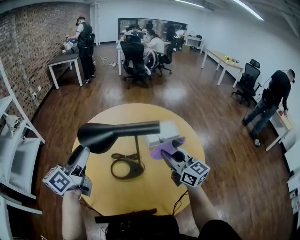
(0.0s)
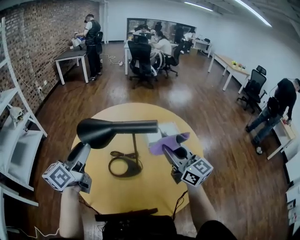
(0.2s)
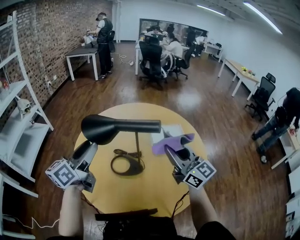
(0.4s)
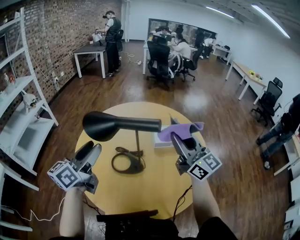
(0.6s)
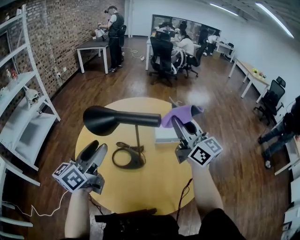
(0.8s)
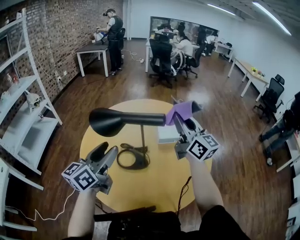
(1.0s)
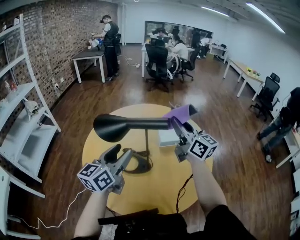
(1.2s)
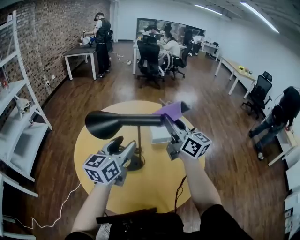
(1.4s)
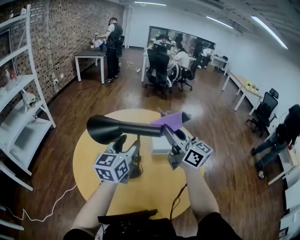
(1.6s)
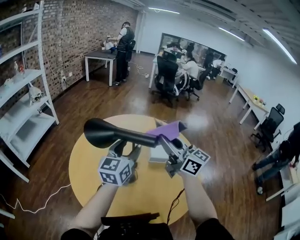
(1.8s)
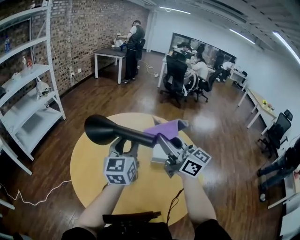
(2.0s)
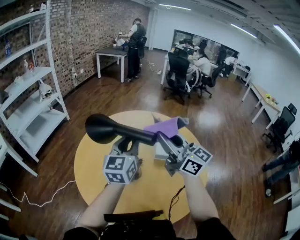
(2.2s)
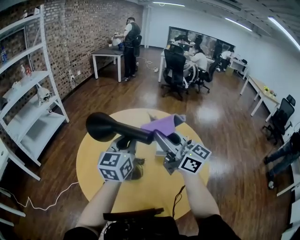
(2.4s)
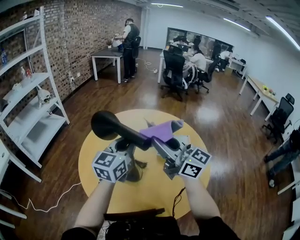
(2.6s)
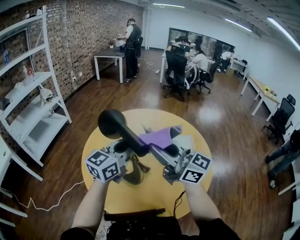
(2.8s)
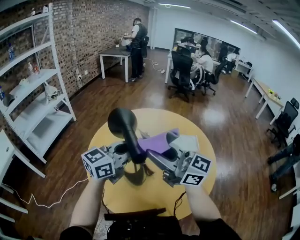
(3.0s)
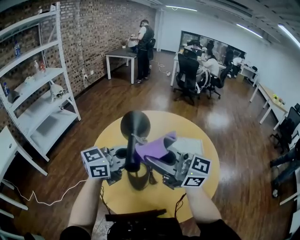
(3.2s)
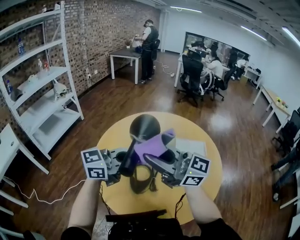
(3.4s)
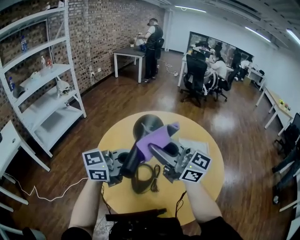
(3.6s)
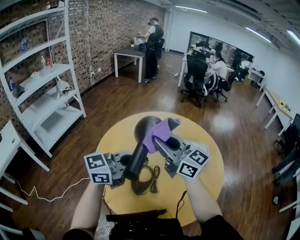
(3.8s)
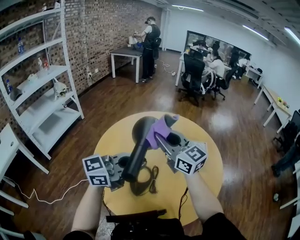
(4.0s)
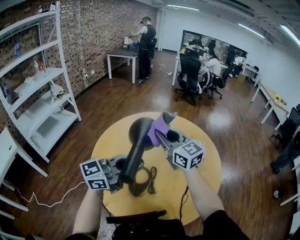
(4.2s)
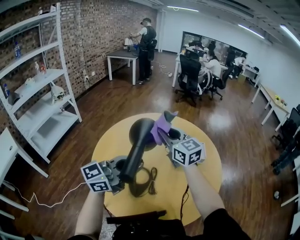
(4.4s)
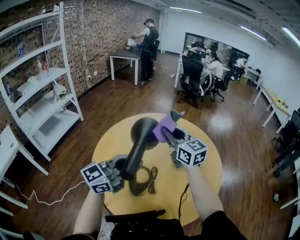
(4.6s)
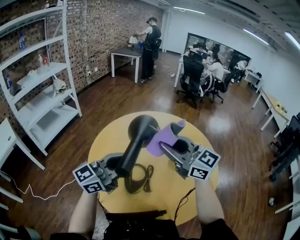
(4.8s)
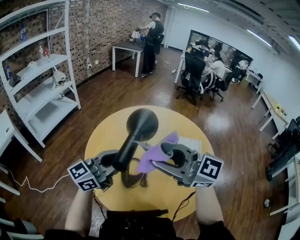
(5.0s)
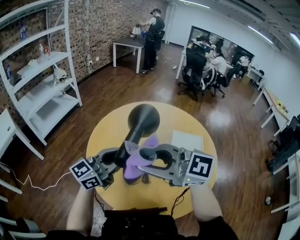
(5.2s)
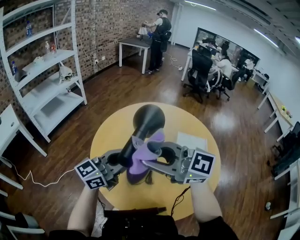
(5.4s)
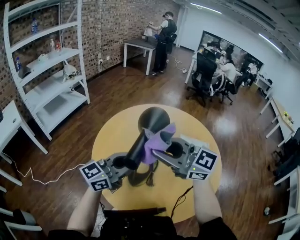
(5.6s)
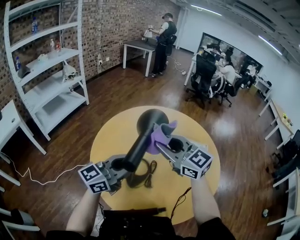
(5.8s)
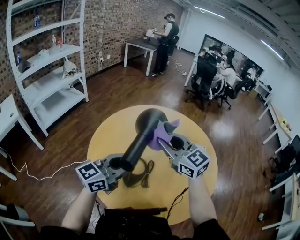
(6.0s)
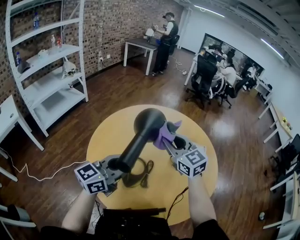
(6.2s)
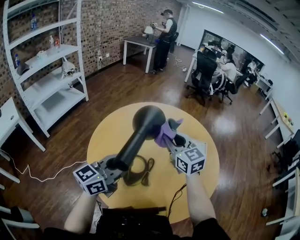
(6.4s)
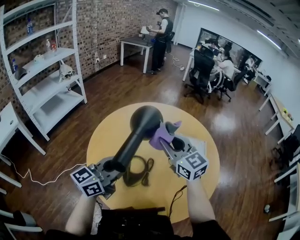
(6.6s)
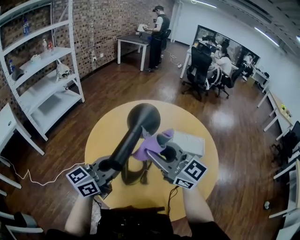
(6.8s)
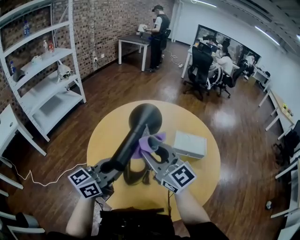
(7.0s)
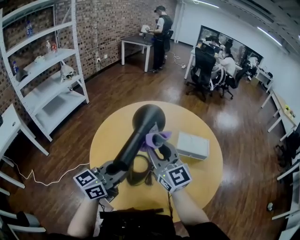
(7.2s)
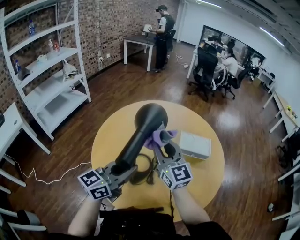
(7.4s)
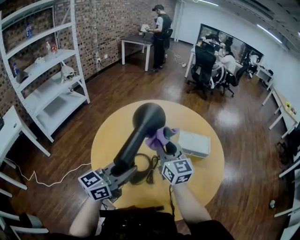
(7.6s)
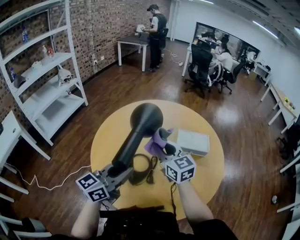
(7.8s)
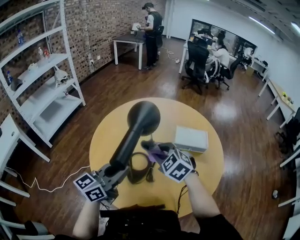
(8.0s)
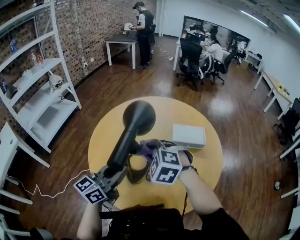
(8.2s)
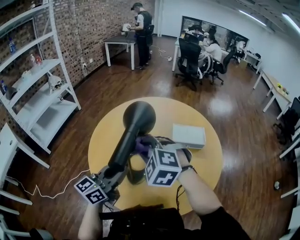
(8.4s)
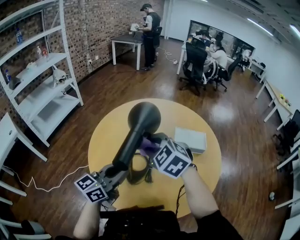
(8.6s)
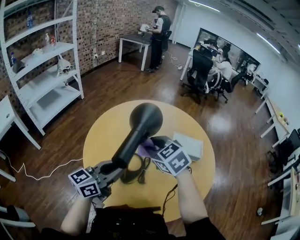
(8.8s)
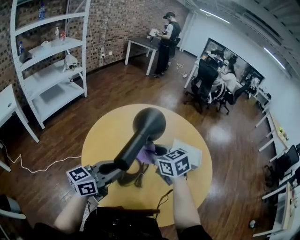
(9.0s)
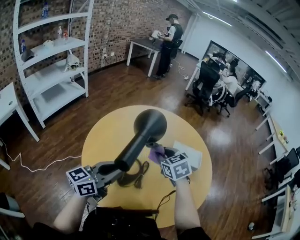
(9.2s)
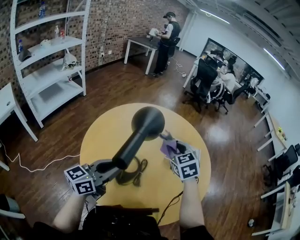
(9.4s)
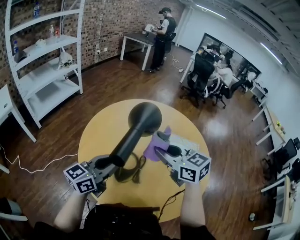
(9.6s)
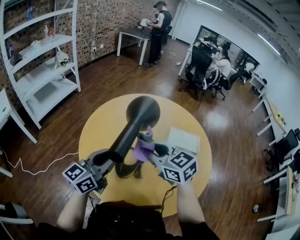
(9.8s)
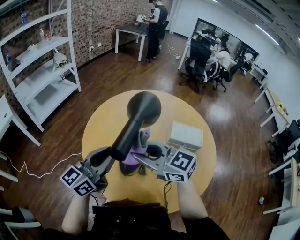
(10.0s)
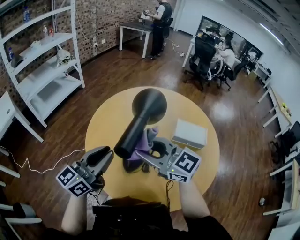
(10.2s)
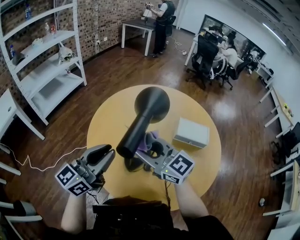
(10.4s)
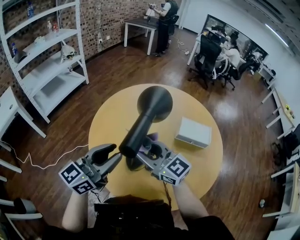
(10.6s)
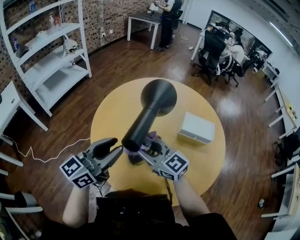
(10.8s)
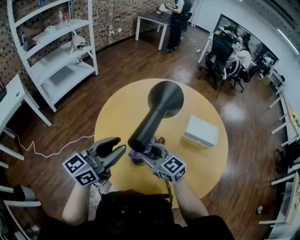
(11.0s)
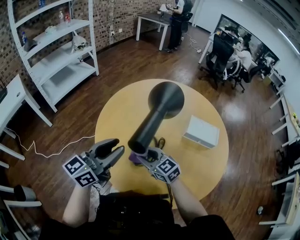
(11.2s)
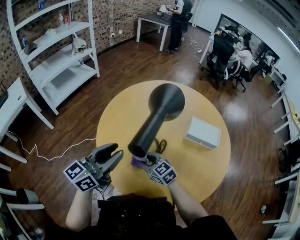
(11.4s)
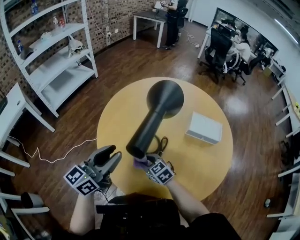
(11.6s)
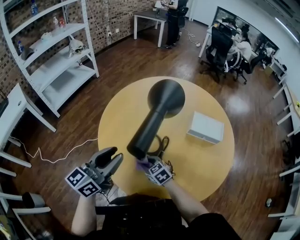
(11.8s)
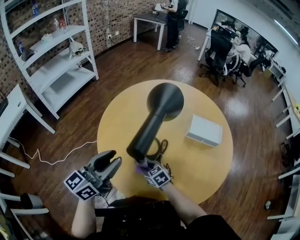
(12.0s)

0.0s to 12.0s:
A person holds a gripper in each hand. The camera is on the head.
0.0s to 1.6s: The left gripper travels to the right by some 20 cm, and swivels about 20 degrees; the right gripper goes about 15 cm upward and forward, and swivels some 20 degrees.
1.6s to 3.0s: The left gripper changes place by approximately 5 cm, and closes its fingers. The right gripper heads to the left and backward, covering approximately 15 cm, and rotates some 30 degrees.
3.0s to 4.4s: The right gripper shifts by approximately 20 cm, and turns by about 30 degrees.
4.4s to 6.0s: The left gripper moves about 5 cm, while the right gripper changes its angle by some 20 degrees.
6.0s to 7.6s: The right gripper swings forward and backward, approximately 10 cm each way, with 2 reversals, and changes its angle by some 30 degrees.
7.6s to 9.0s: The right gripper goes up and down, approximately 10 cm each way, reversing 2 times, and tilts its fingers roughly 30 degrees downward.
9.0s to 10.4s: The right gripper changes place by approximately 15 cm, and changes its angle by some 30 degrees. The left gripper changes place by about 10 cm.
10.4s to 12.0s: The left gripper changes place by approximately 5 cm. The right gripper moves downward, approximately 35 cm, and tips its fingers downward by approximately 40 degrees.

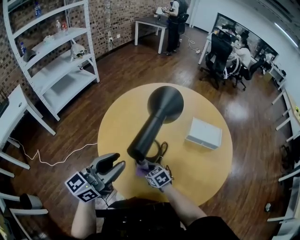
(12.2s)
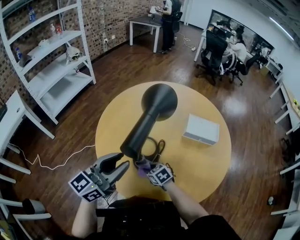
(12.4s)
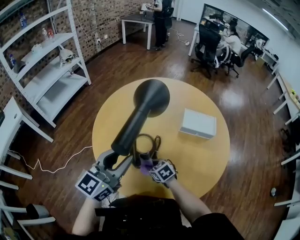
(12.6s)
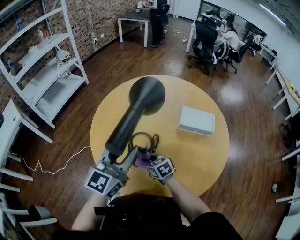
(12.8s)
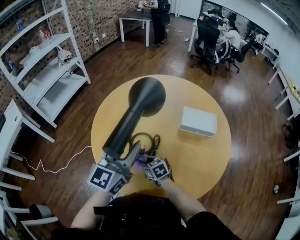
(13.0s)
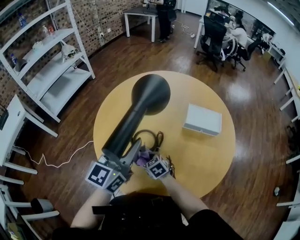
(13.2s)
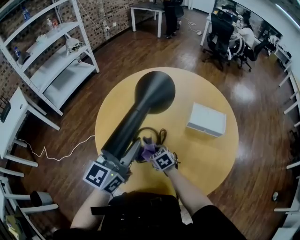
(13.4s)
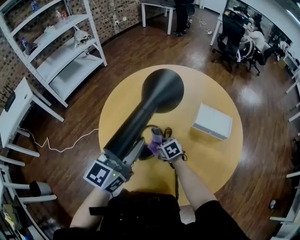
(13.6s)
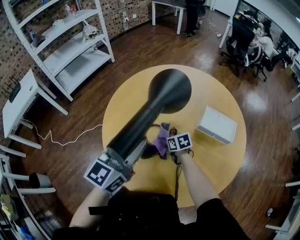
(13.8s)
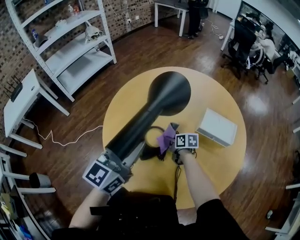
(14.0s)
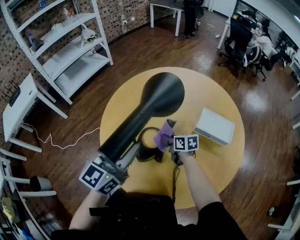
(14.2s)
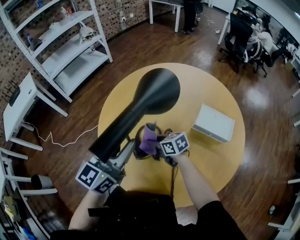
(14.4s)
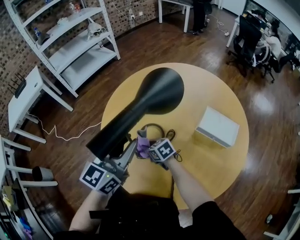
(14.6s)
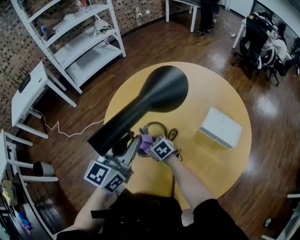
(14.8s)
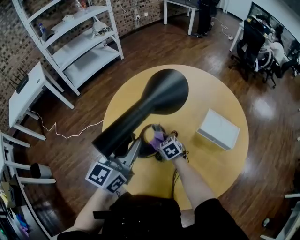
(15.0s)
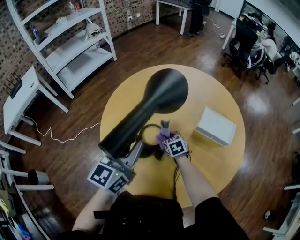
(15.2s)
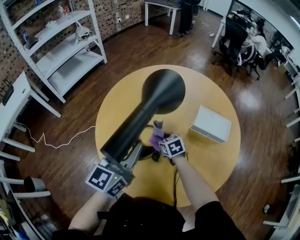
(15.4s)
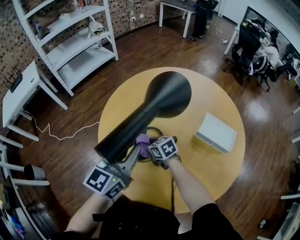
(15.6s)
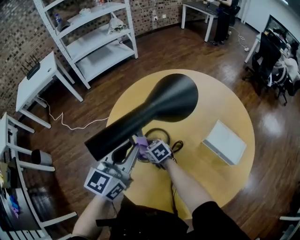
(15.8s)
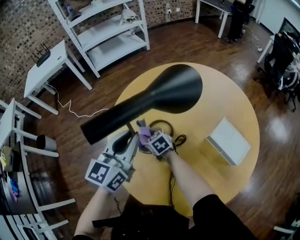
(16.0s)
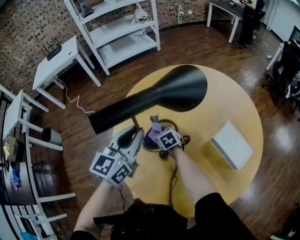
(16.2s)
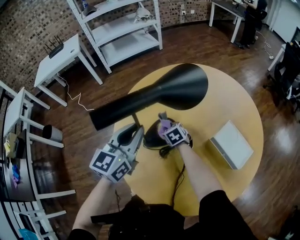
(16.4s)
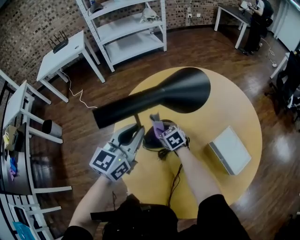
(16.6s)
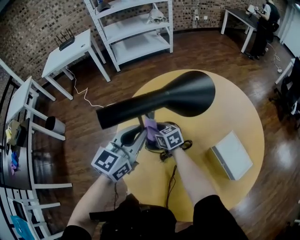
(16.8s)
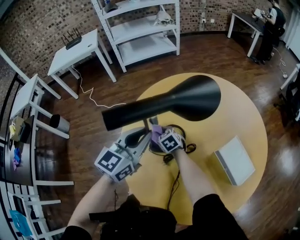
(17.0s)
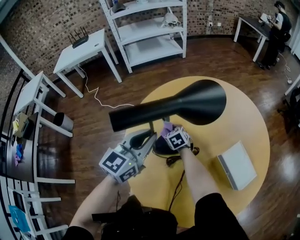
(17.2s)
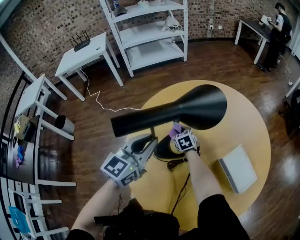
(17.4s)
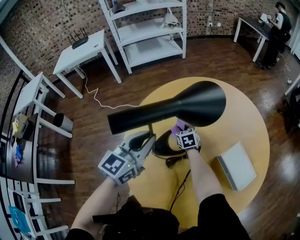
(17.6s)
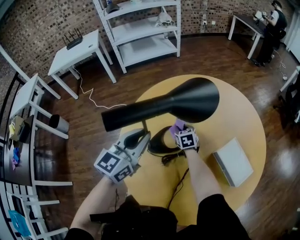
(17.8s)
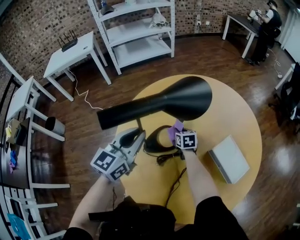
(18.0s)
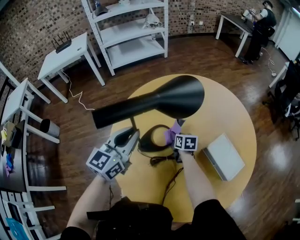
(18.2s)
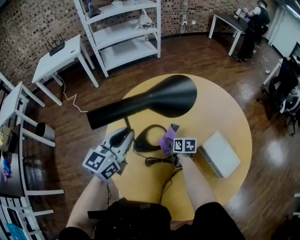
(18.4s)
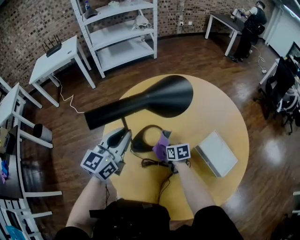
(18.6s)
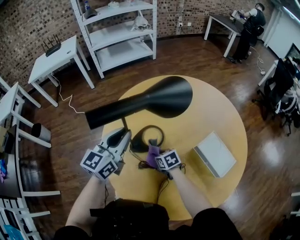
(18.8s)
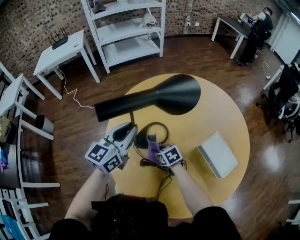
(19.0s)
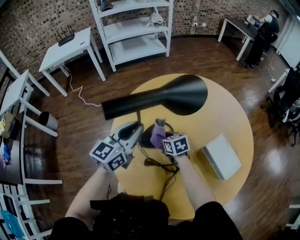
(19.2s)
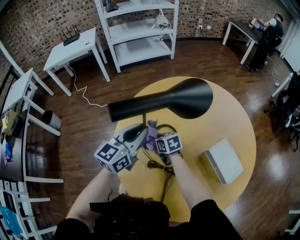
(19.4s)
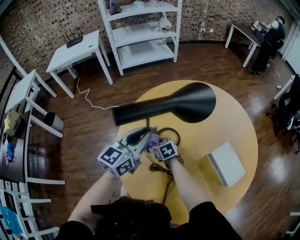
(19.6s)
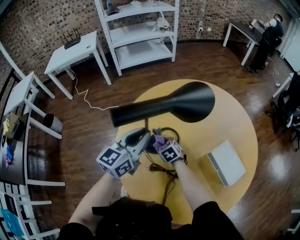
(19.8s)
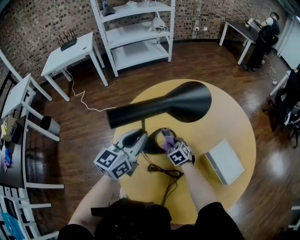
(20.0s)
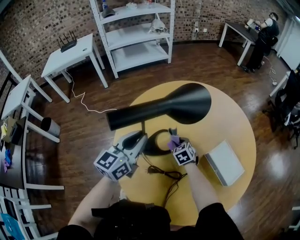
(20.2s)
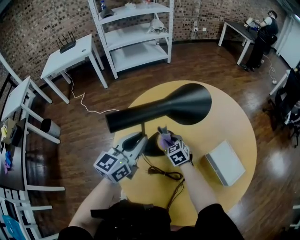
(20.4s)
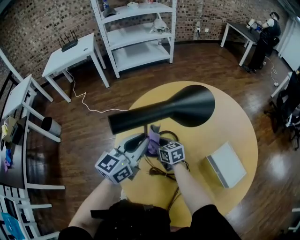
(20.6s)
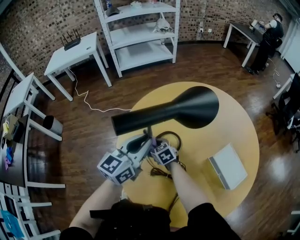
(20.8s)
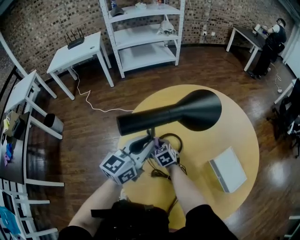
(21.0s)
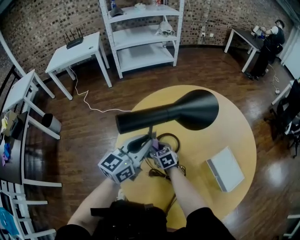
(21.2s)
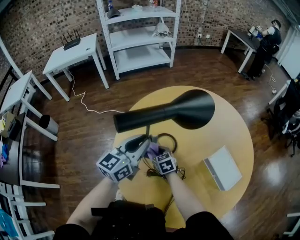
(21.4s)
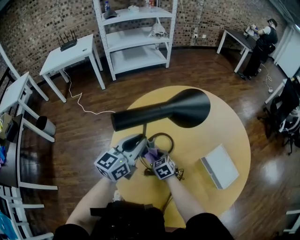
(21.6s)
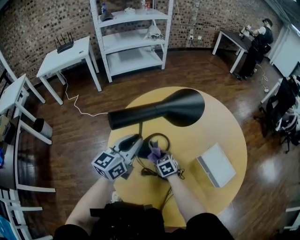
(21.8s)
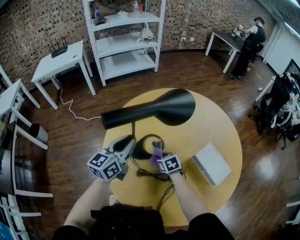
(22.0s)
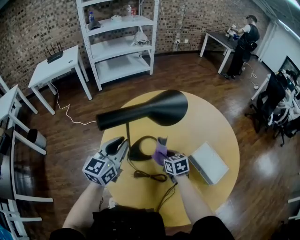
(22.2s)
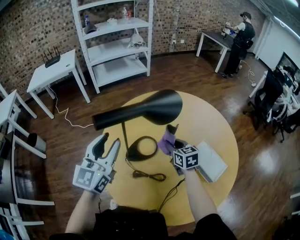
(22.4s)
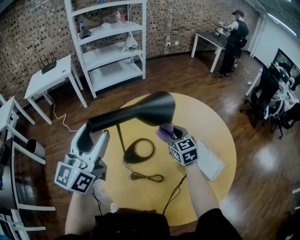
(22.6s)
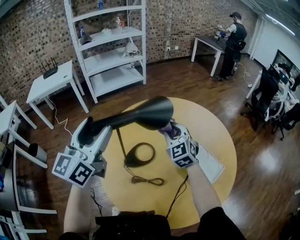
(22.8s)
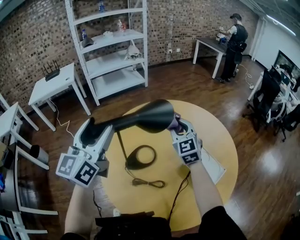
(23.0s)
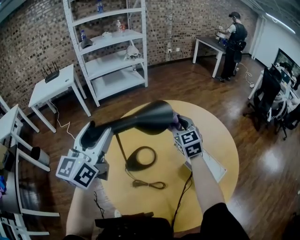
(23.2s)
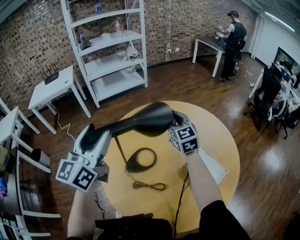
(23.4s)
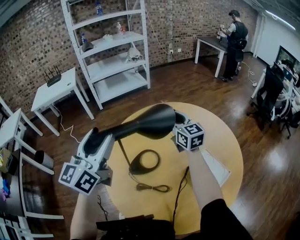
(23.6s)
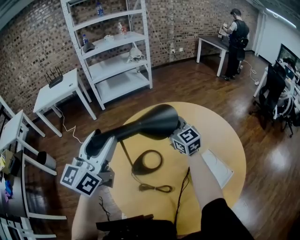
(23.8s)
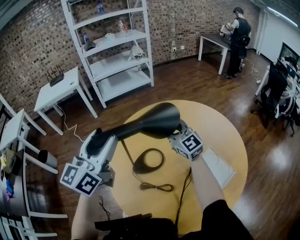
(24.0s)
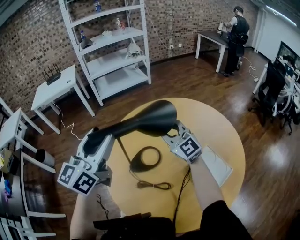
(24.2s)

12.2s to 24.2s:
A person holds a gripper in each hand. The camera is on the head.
12.2s to 13.8s: The right gripper moves forward and to the right, roughly 15 cm, while the left gripper heads to the right, covering some 10 cm.
13.8s to 15.2s: The right gripper goes to the left and returns, some 10 cm each way, and rotates approximately 20 degrees.
15.2s to 16.6s: The right gripper shifts by some 10 cm, and rotates some 40 degrees; the left gripper rotates about 30 degrees.
16.6s to 18.2s: The right gripper travels to the right by about 10 cm, and swivels approximately 40 degrees.
18.2s to 19.8s: The right gripper travels to the left by about 10 cm, and twists approximately 40 degrees counterclockwise, seen from behind.
19.8s to 21.2s: The right gripper goes to the right and returns, approximately 10 cm each way.
21.2s to 22.6s: The right gripper travels upward and to the right by about 30 cm, and changes its angle by about 30 degrees; the left gripper goes approximately 15 cm upward, changes its angle by approximately 20 degrees, and opens up.
22.6s to 24.2s: The right gripper heads upward and to the left, covering approximately 10 cm, and turns by roughly 30 degrees.
